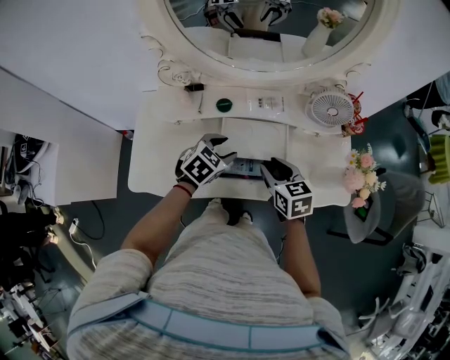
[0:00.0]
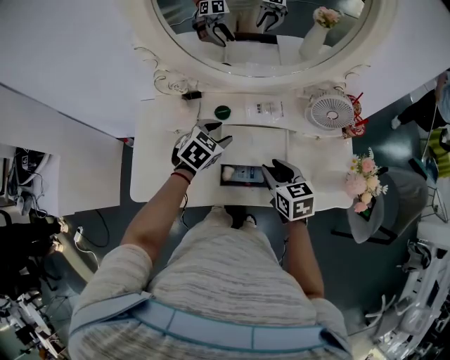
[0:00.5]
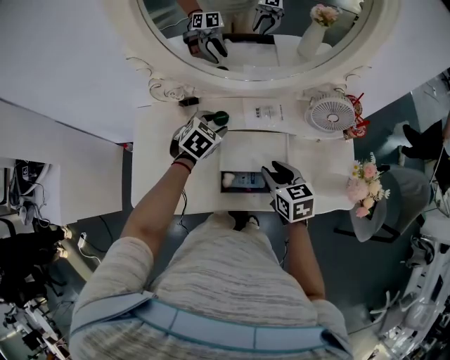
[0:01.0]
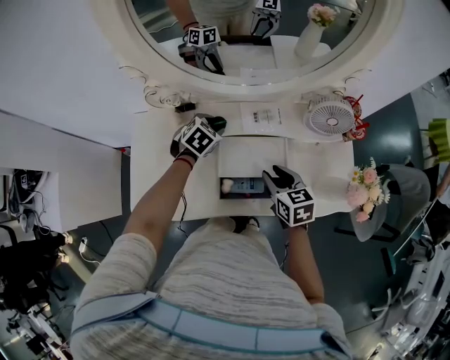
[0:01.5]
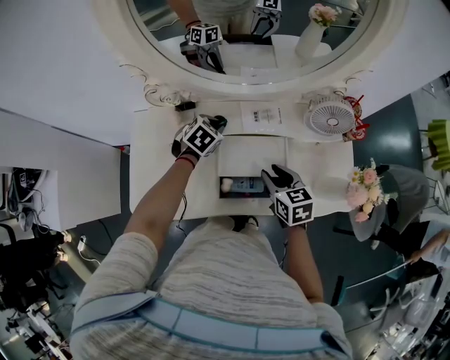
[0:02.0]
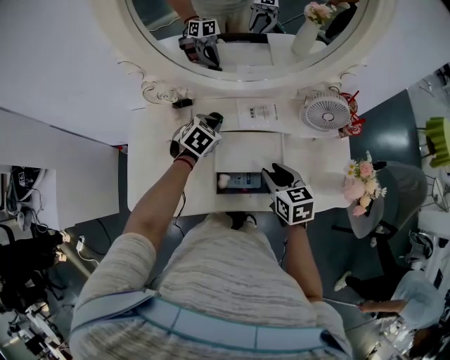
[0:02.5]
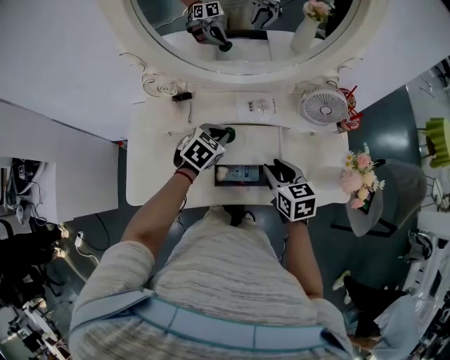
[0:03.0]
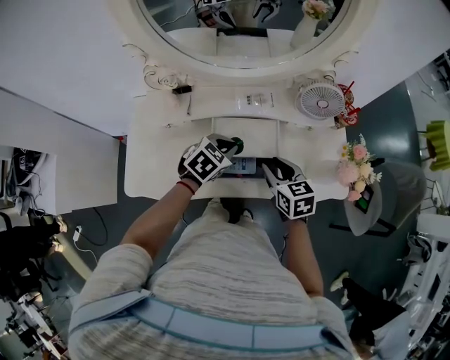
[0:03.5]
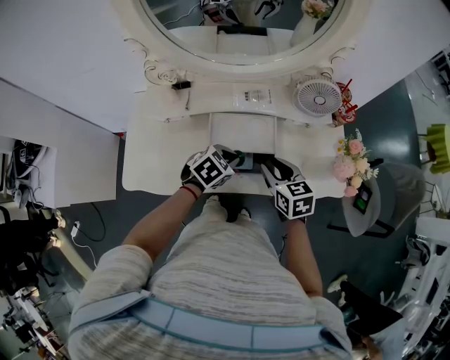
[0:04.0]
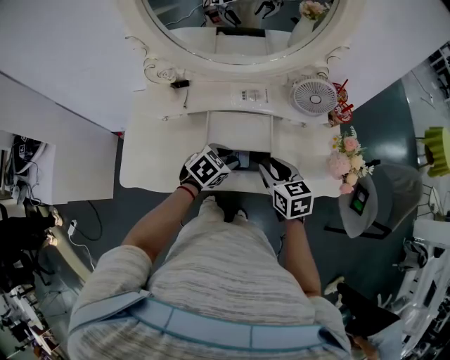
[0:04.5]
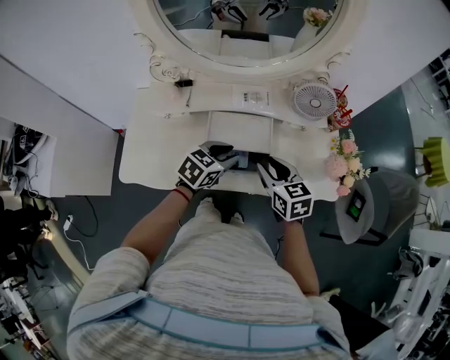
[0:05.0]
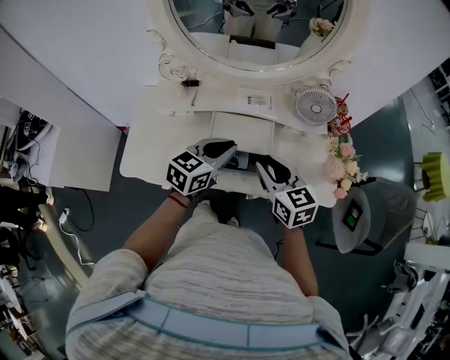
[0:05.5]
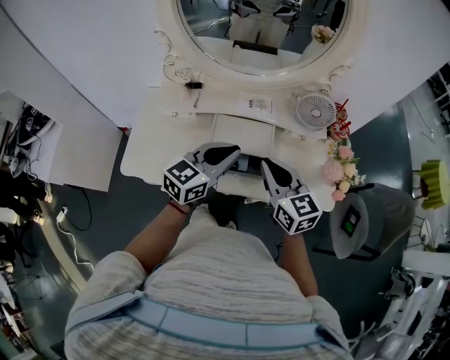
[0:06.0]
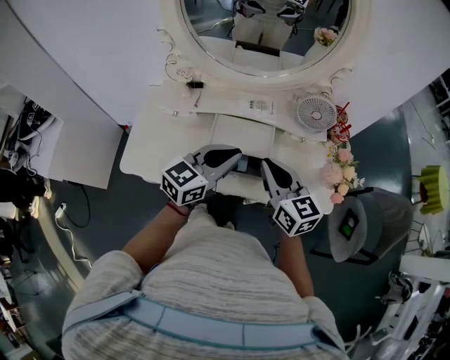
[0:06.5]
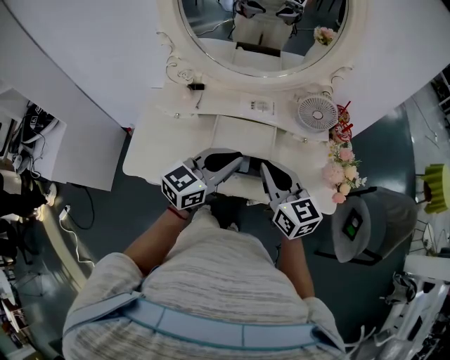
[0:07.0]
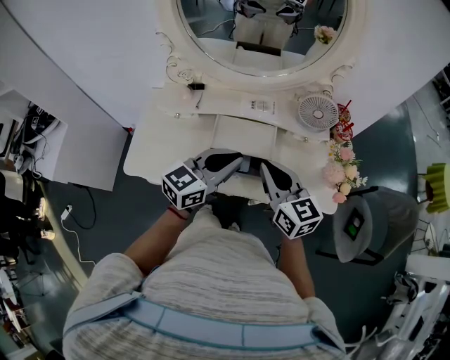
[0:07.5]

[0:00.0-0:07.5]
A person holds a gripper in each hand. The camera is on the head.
0:00.0 to 0:02.0: The left gripper travels forward by about 15 cm, and closes its fingers.
0:02.0 to 0:04.0: The left gripper heads backward and to the right, covering roughly 20 cm. Meanwhile the right gripper travels backward by approximately 5 cm.
0:04.0 to 0:05.5: The left gripper shifts about 15 cm upward, angles its fingers upward, by about 30 degrees, and opens, then closes once more; the right gripper travels upward by some 10 cm.
0:05.5 to 0:07.5: The left gripper changes place by some 5 cm; the right gripper closes up.

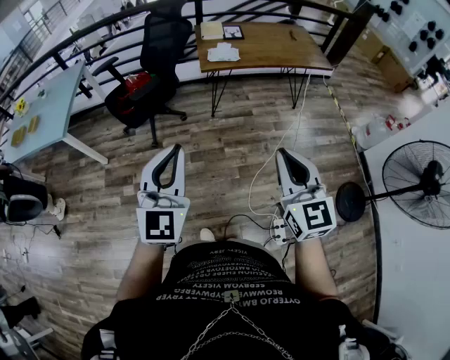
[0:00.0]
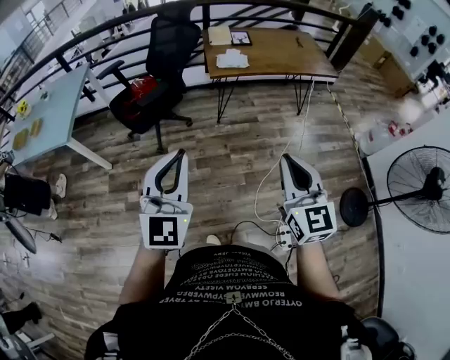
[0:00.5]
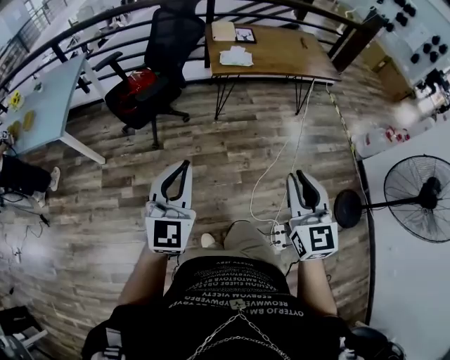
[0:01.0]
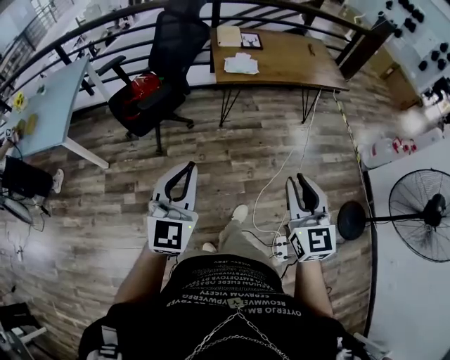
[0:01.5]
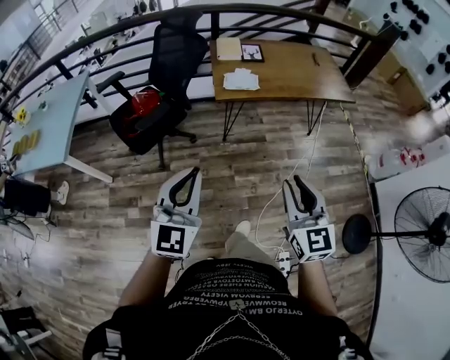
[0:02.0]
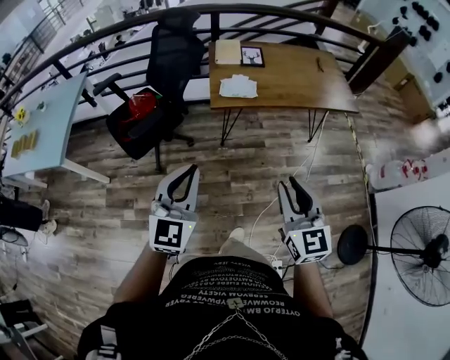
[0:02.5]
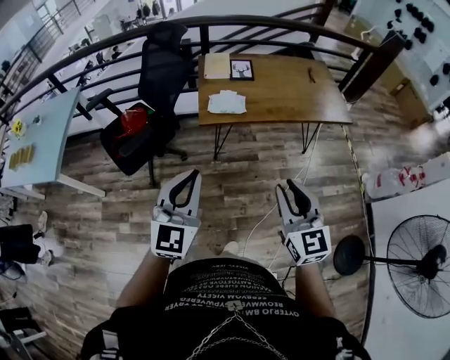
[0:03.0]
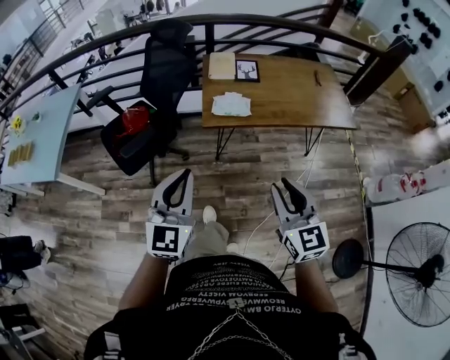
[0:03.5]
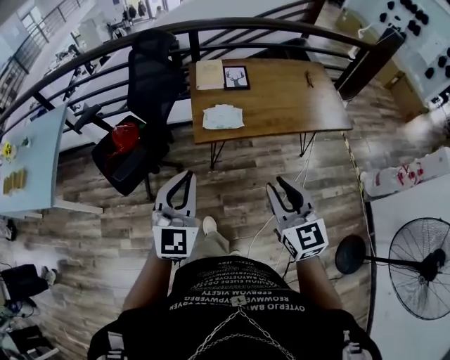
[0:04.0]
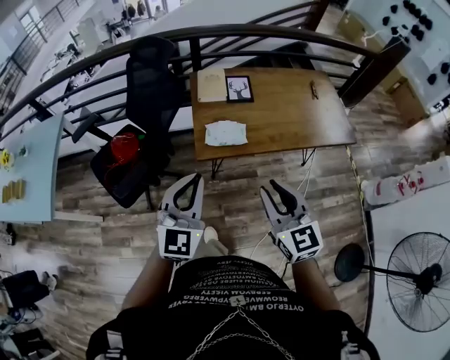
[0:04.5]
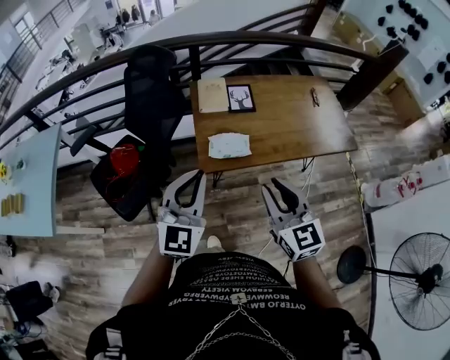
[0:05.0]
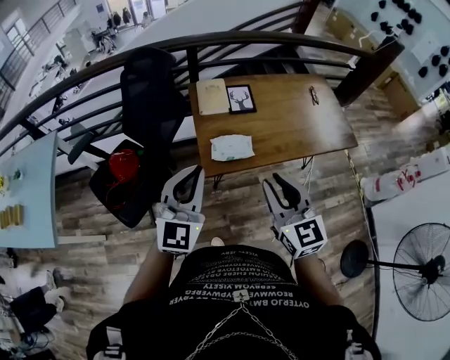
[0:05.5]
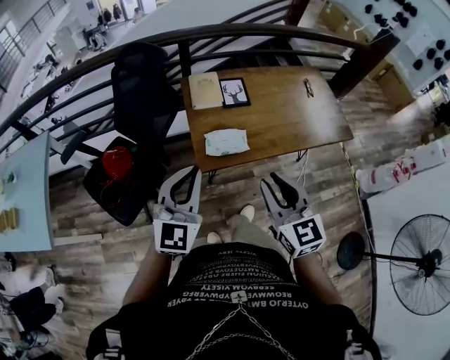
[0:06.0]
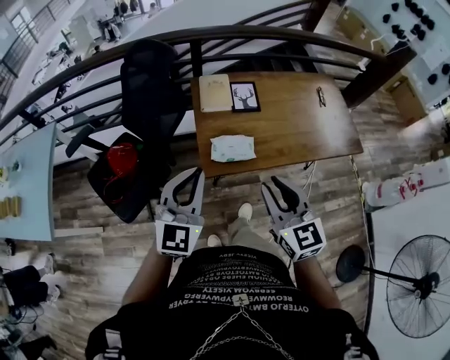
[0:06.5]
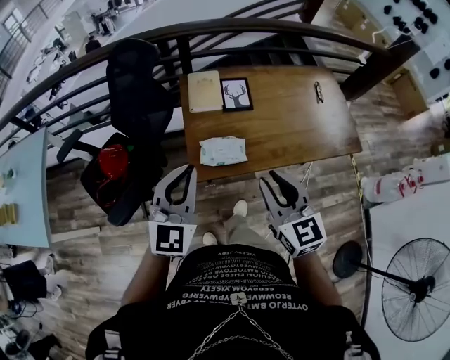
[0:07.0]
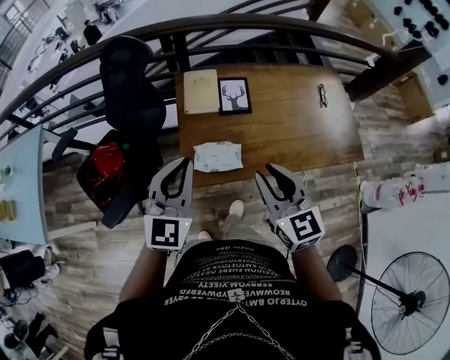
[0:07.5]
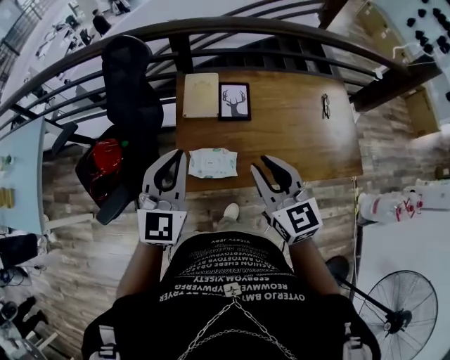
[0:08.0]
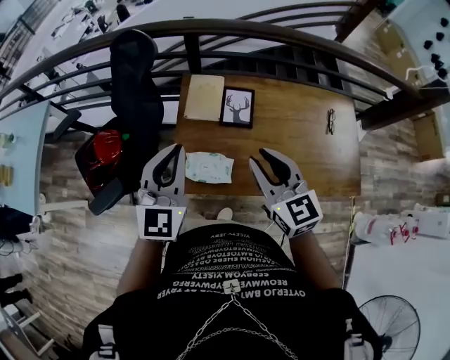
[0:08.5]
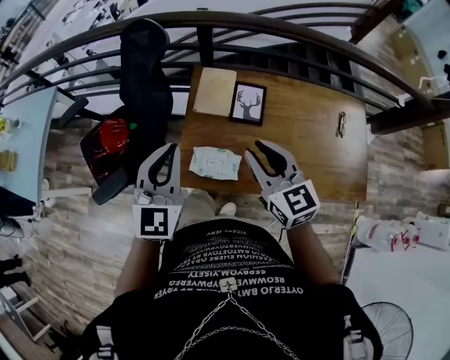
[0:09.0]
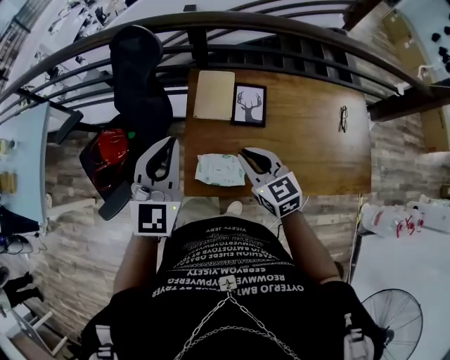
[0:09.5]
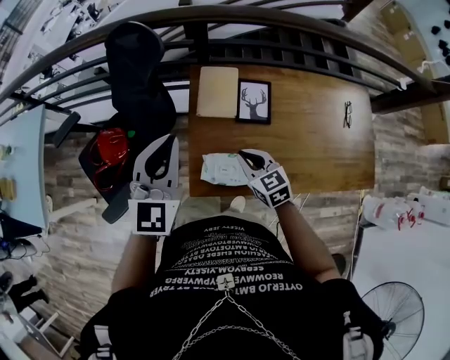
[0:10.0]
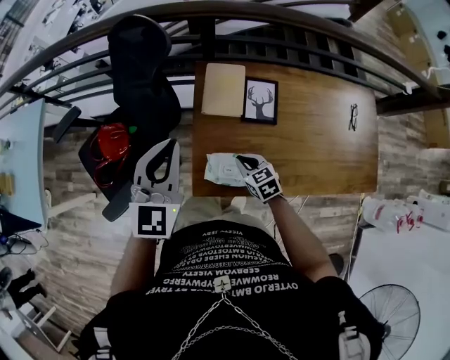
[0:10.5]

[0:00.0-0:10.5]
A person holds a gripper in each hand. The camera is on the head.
0:00.0 to 0:02.0: Both grippers move forward, about 20 cm.
0:02.0 to 0:04.0: The two grippers go some 25 cm forward.
0:04.0 to 0:06.5: The two grippers go roughly 20 cm forward.
0:06.5 to 0:08.5: The grippers both shift forward and to the right by some 25 cm.
0:08.5 to 0:10.5: The left gripper travels forward and to the left by approximately 10 cm. The right gripper is displaced downward by roughly 30 cm, swivels approximately 30 degrees, and closes up.

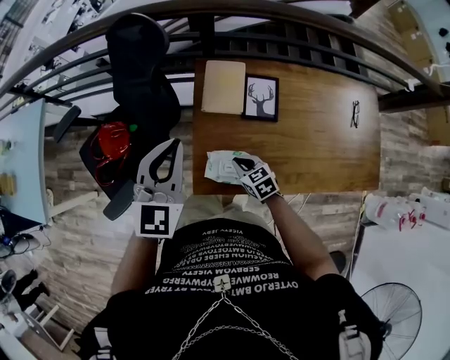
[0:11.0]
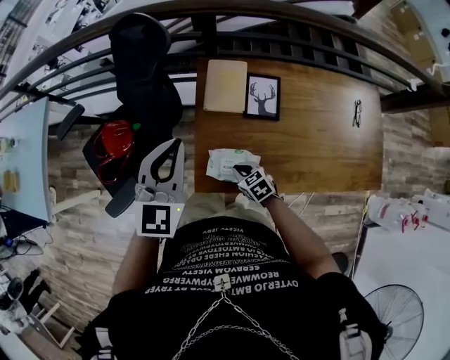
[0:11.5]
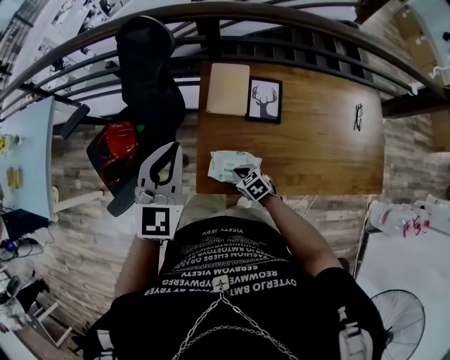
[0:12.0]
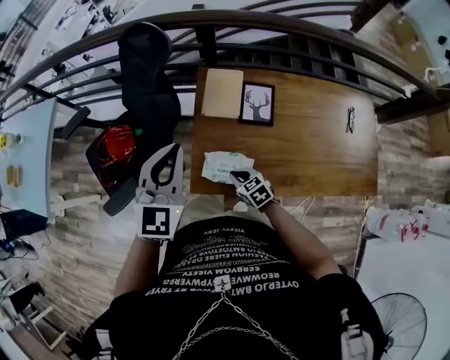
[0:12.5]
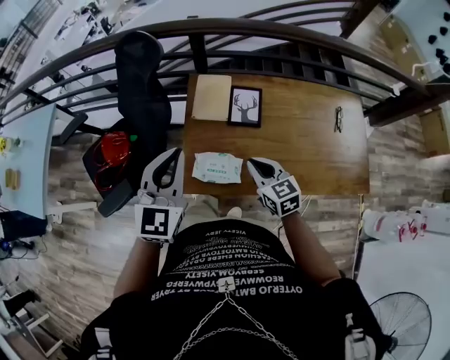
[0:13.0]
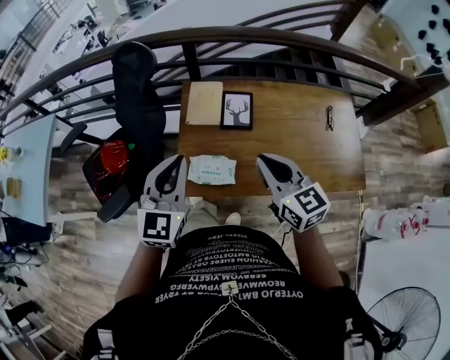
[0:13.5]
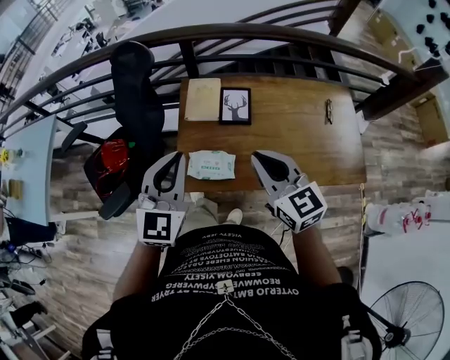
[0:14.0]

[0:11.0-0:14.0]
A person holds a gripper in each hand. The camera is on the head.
0:11.0 to 0:12.5: The left gripper ends up some 5 cm from where it was.
0:12.5 to 0:14.0: The right gripper goes roughly 35 cm upward, and points its fingers some 30 degrees further upward, while the left gripper is displaced backward and to the right by about 10 cm.

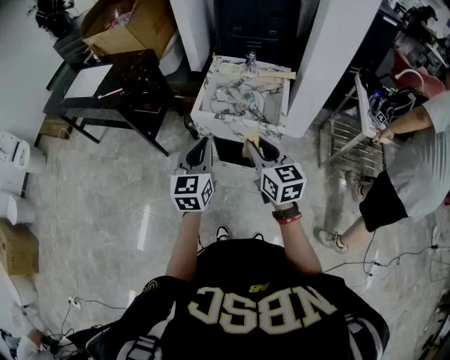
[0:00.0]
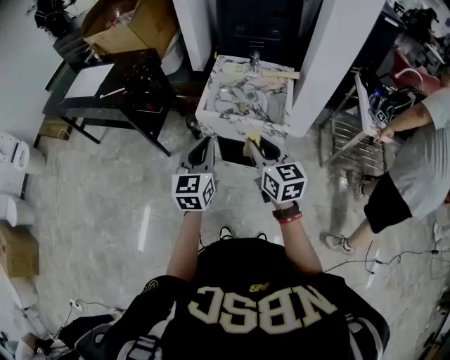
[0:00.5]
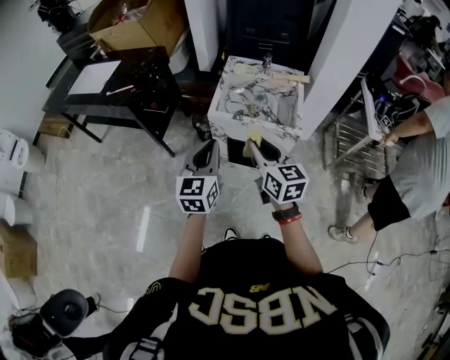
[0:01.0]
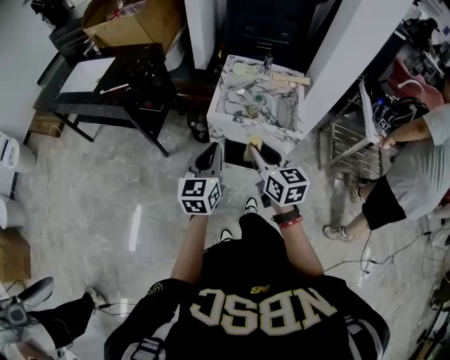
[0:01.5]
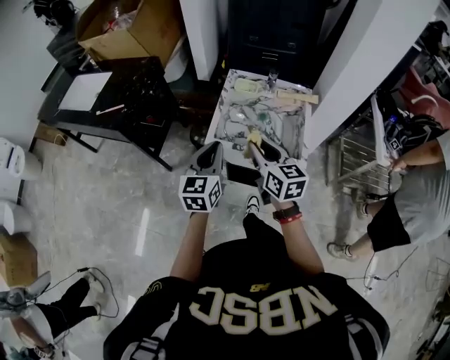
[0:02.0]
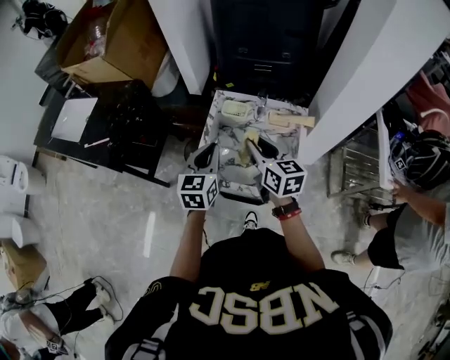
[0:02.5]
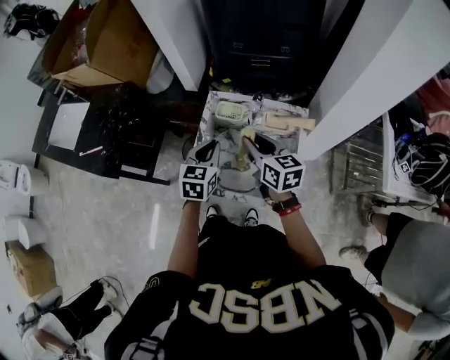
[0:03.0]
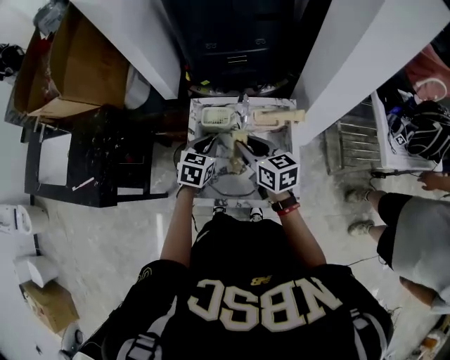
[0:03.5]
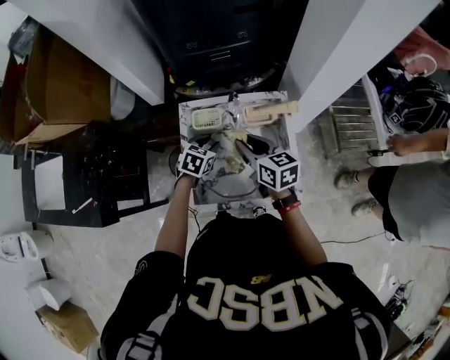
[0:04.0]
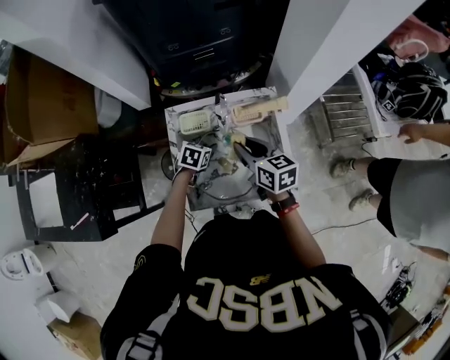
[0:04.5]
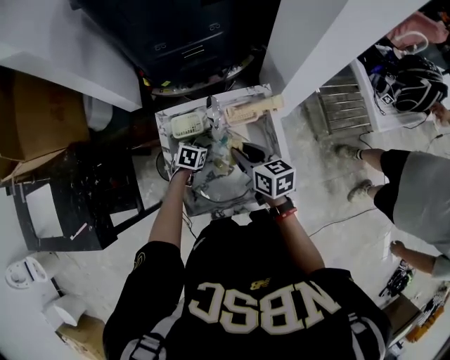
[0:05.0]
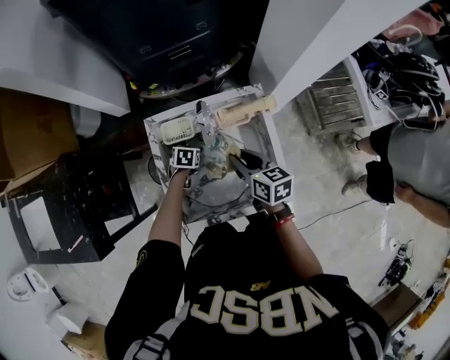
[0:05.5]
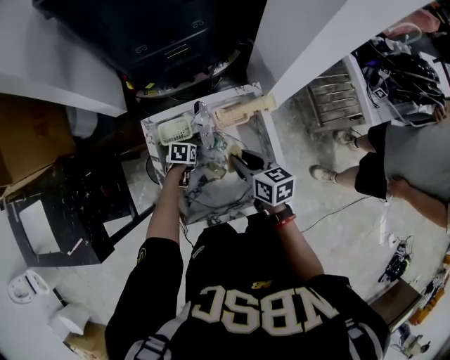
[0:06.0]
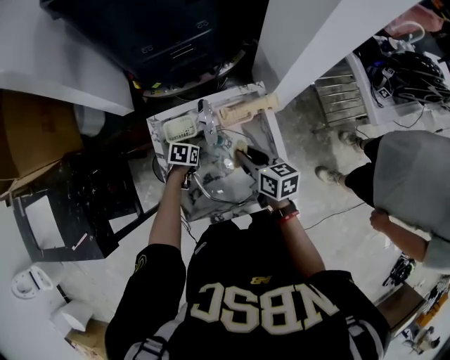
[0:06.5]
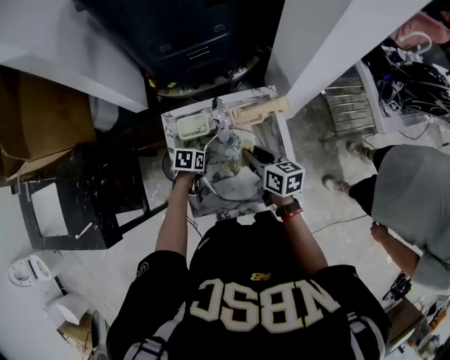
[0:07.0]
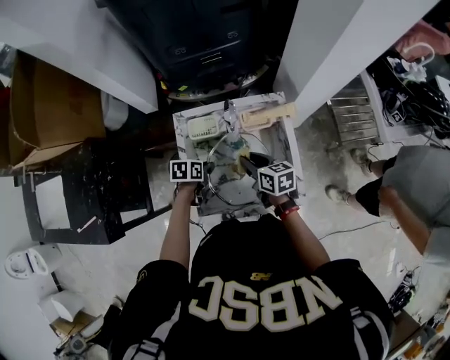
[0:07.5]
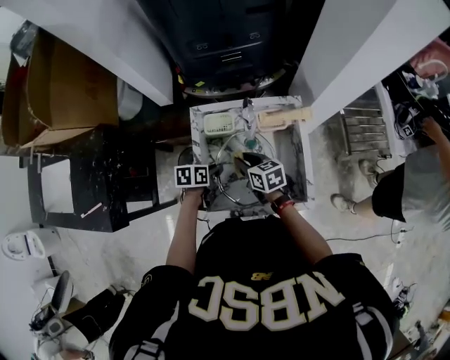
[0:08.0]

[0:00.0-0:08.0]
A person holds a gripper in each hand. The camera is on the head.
0:00.0 to 0:02.0: The grippers both shift forward by about 15 cm.
0:02.0 to 0:04.0: The right gripper travels forward by roughly 25 cm; the left gripper shifts approximately 40 cm forward, downward and to the right, and angles its fingers downward, by approximately 40 degrees.
0:04.0 to 0:06.0: The left gripper shifts approximately 20 cm downward, turns by approximately 30 degrees, and opens its fingers. The right gripper goes approximately 10 cm downward and to the right.
0:06.0 to 0:08.0: The right gripper heads to the left and downward, covering some 10 cm. Meanwhile the left gripper shifts some 15 cm upward and backward, changes its angle by some 30 degrees, and closes.
